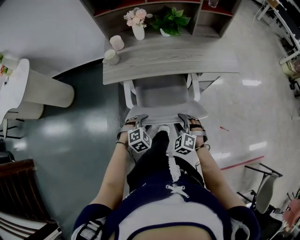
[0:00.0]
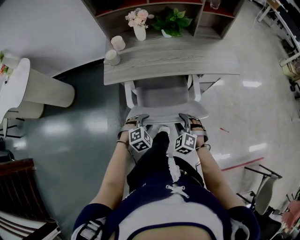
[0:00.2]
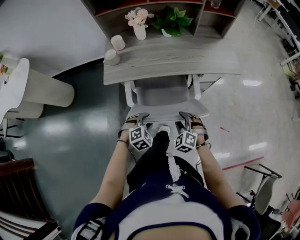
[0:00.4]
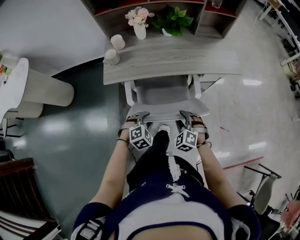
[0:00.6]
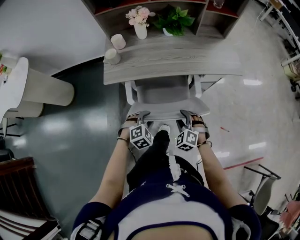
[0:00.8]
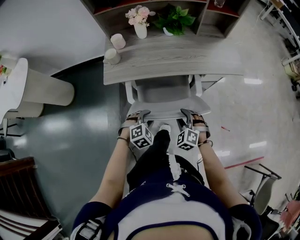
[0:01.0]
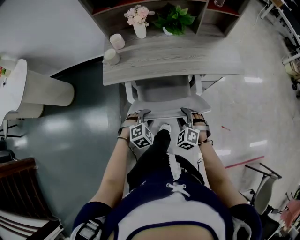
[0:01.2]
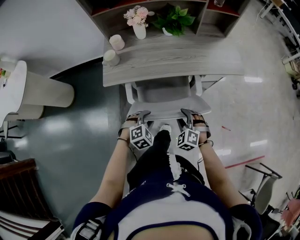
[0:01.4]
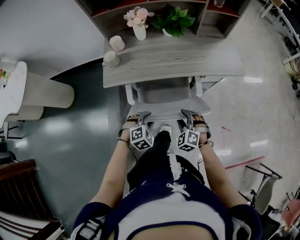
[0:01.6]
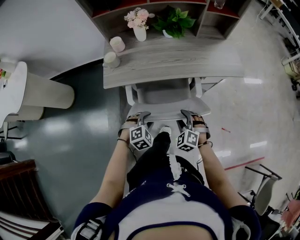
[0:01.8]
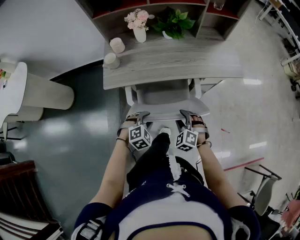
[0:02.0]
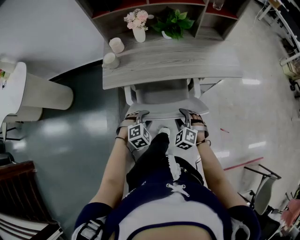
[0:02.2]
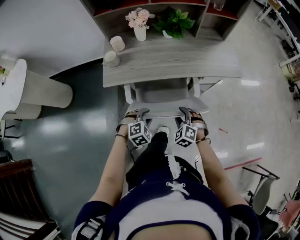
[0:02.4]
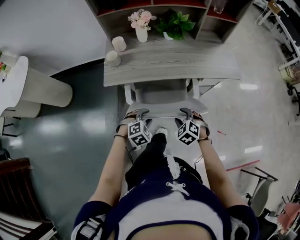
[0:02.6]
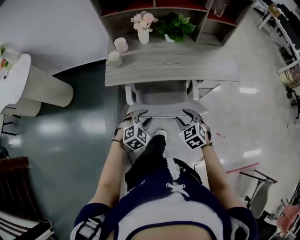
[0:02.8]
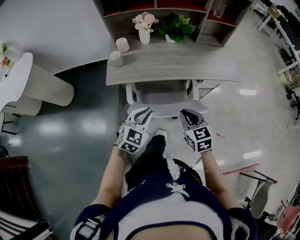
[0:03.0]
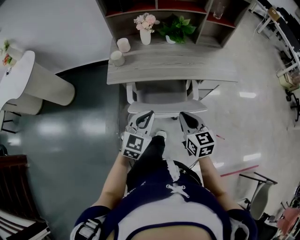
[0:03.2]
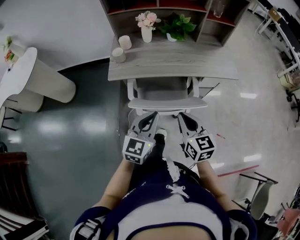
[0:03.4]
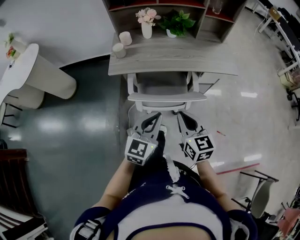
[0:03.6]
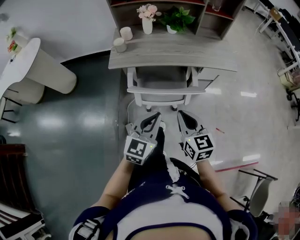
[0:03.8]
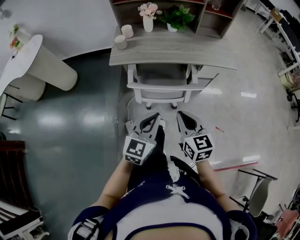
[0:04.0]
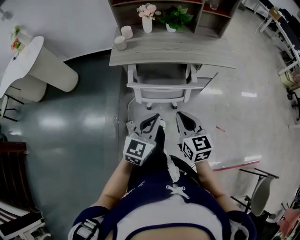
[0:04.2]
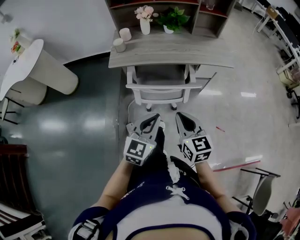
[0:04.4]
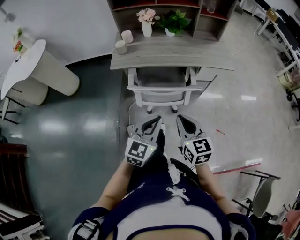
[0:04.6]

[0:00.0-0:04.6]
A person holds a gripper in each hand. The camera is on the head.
0:00.0 to 0:01.6: Both grippers move forward, roughly 5 cm.
0:01.6 to 0:03.0: Both grippers travel together upward, approximately 15 cm. The right gripper rotates around the line of its fingers by about 50 degrees, clockwise from behind, and closes, while the left gripper turns by about 40 degrees, and closes its fingers.
0:03.0 to 0:04.6: Both grippers move backward, about 20 cm.

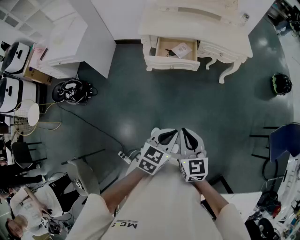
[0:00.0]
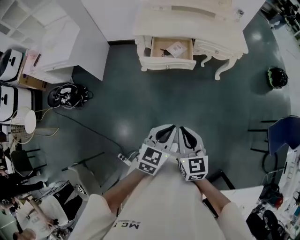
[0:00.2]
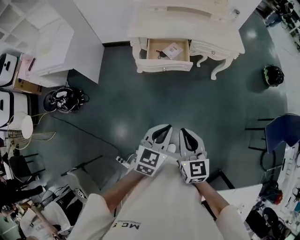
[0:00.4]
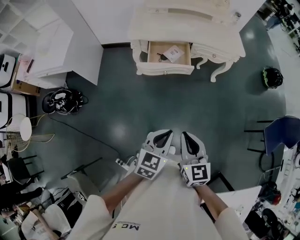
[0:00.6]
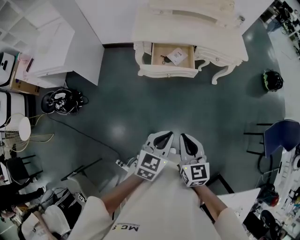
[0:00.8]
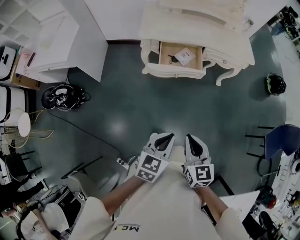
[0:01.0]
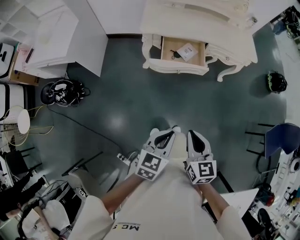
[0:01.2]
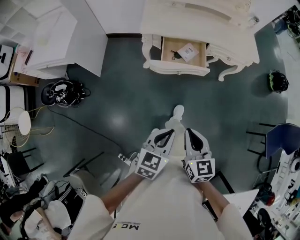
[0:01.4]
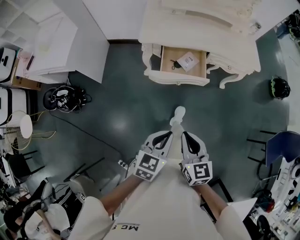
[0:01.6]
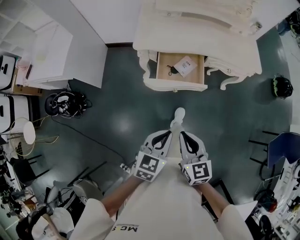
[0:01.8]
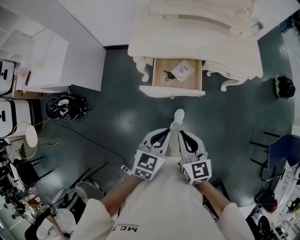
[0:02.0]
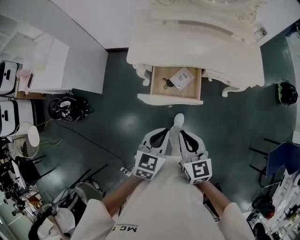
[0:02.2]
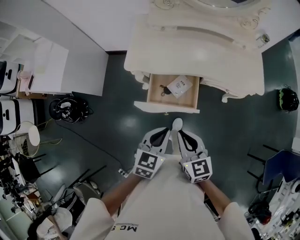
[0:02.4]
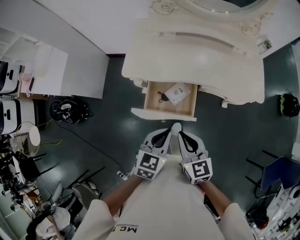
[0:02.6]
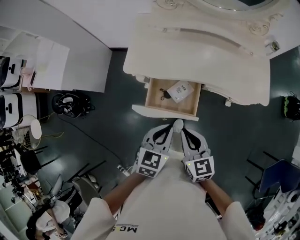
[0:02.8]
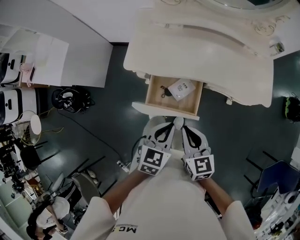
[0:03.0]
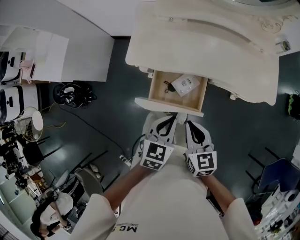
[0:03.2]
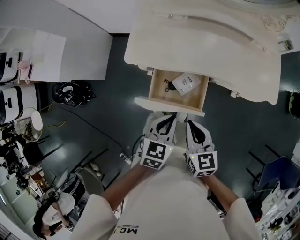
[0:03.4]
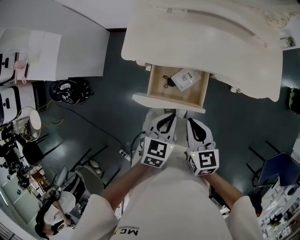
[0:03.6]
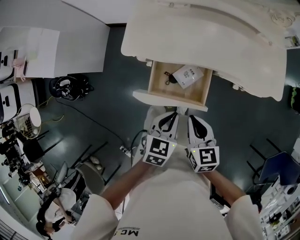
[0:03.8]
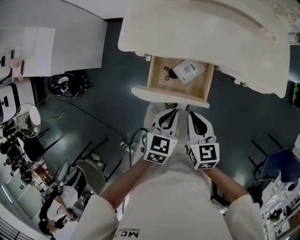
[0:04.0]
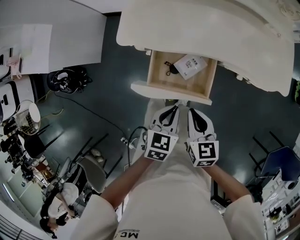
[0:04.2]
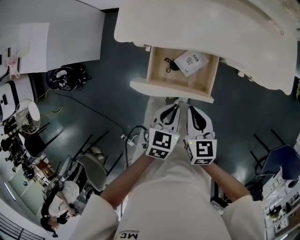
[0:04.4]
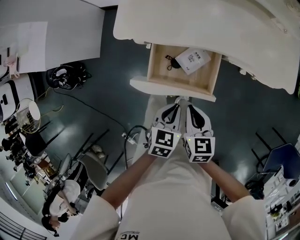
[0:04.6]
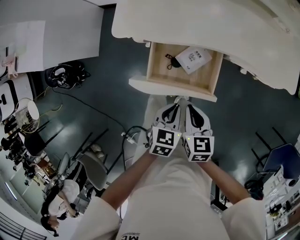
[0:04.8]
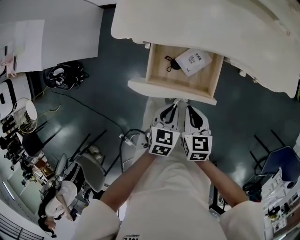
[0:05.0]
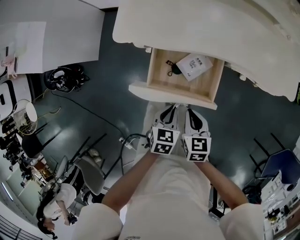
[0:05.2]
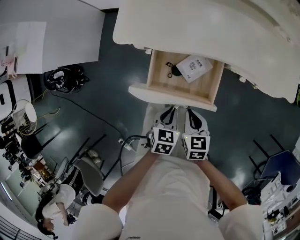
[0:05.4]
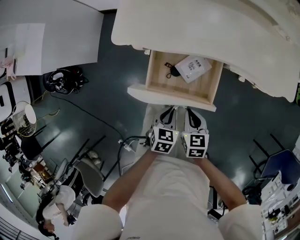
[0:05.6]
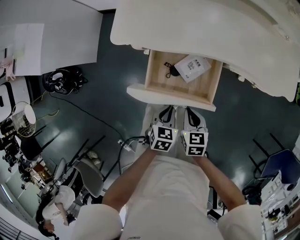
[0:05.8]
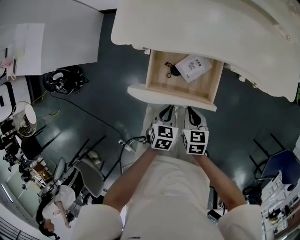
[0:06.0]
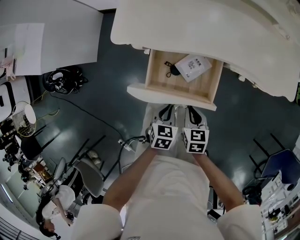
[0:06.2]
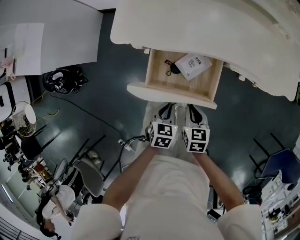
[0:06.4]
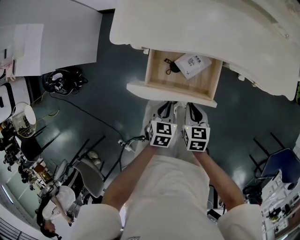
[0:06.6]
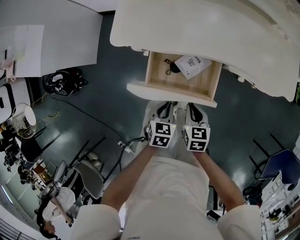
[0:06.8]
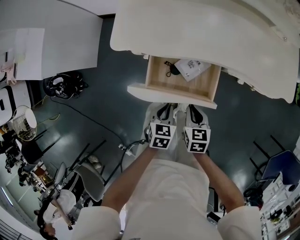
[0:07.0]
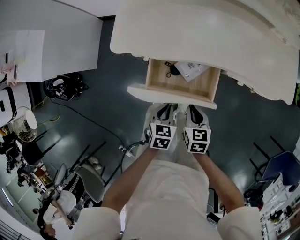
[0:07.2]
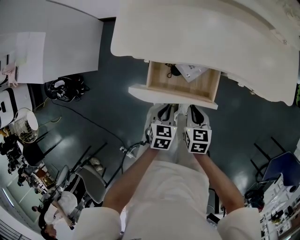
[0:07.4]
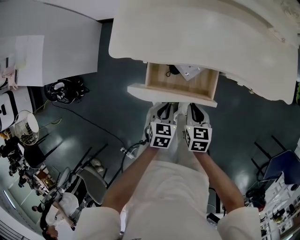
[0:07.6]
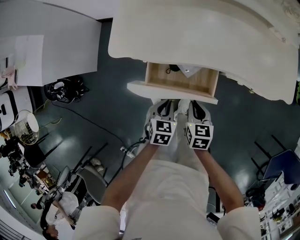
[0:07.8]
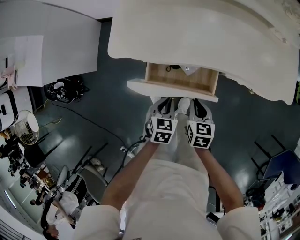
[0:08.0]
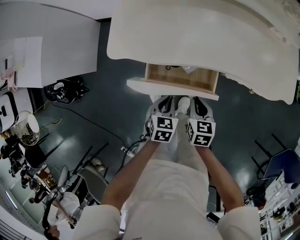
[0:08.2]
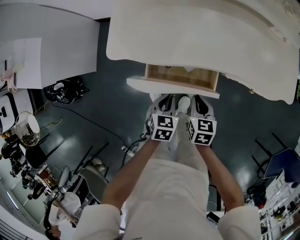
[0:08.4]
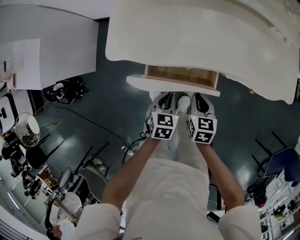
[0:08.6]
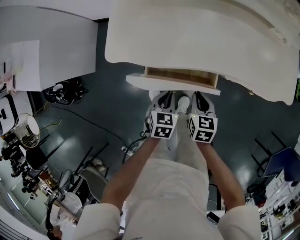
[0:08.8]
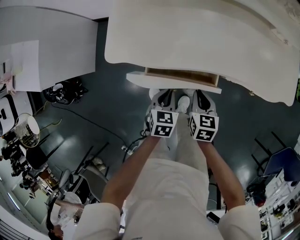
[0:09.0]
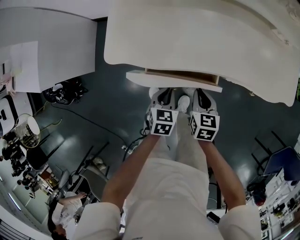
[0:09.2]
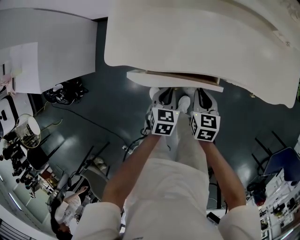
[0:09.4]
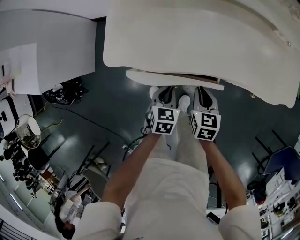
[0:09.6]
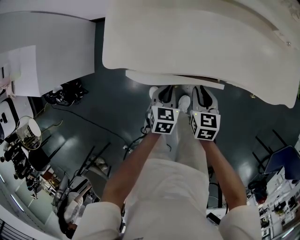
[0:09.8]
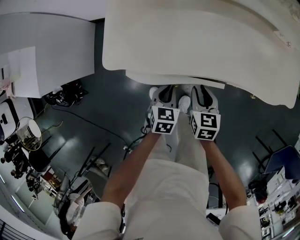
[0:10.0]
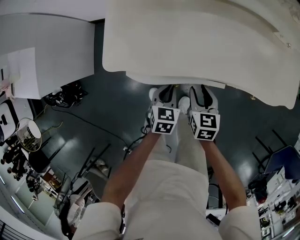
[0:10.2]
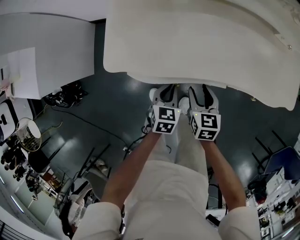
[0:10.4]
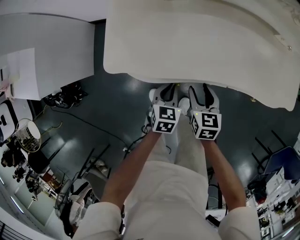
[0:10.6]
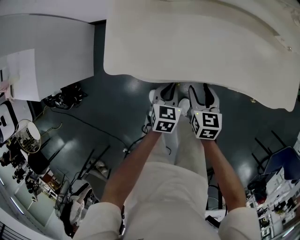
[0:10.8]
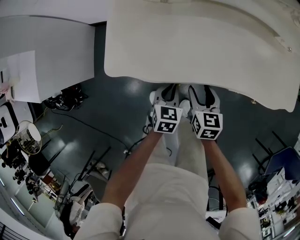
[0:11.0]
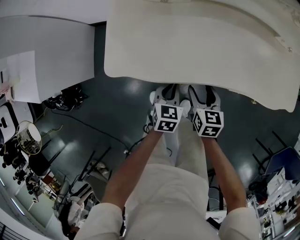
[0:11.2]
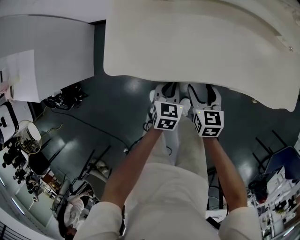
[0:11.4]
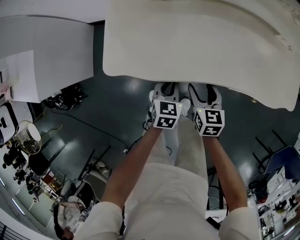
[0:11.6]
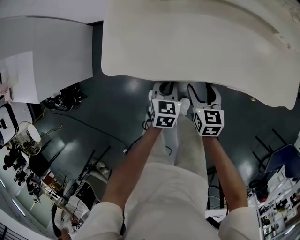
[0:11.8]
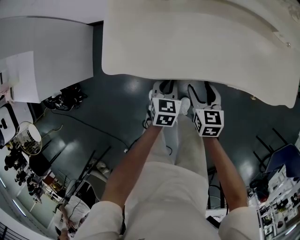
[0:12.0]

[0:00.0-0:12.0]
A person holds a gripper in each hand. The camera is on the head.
0:00.0 to 0:01.6: Both grippers move forward and to the left, roughly 20 cm.
0:01.6 to 0:03.0: The grippers both shift forward by about 30 cm.
0:03.0 to 0:04.4: The two grippers go about 10 cm downward.
0:04.4 to 0:06.0: Both grippers travel together downward, approximately 15 cm.
0:06.0 to 0:07.6: The grippers both shift forward by approximately 5 cm.
0:07.6 to 0:09.0: The two grippers go about 10 cm forward.
0:09.0 to 0:10.4: The right gripper moves about 5 cm, and opens up, while the left gripper shifts about 5 cm forward.
0:10.4 to 0:12.0: The grippers stay close to where they were, moving slightly.

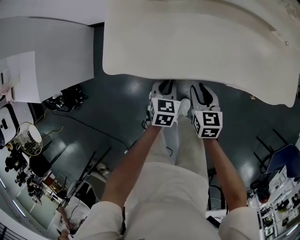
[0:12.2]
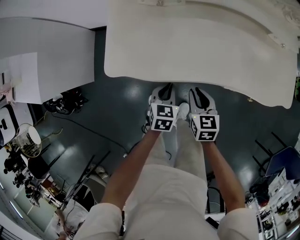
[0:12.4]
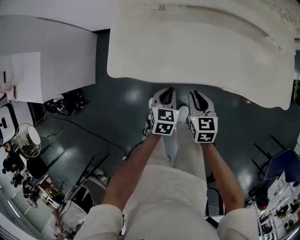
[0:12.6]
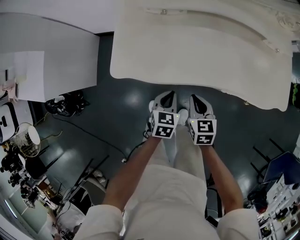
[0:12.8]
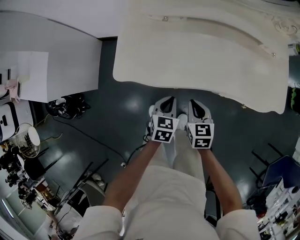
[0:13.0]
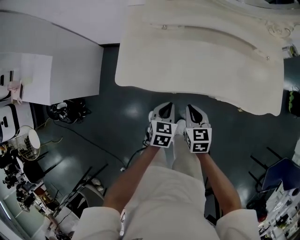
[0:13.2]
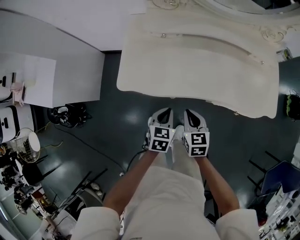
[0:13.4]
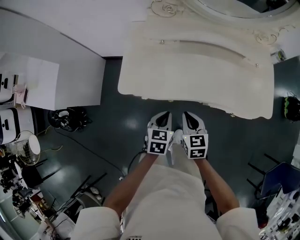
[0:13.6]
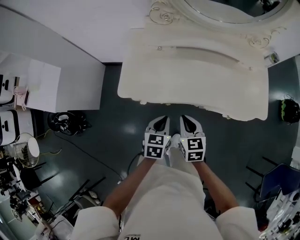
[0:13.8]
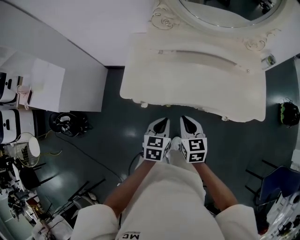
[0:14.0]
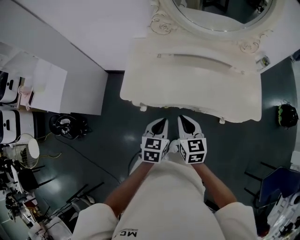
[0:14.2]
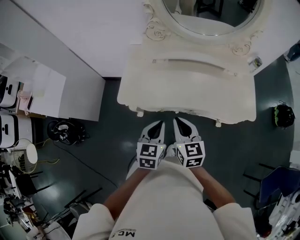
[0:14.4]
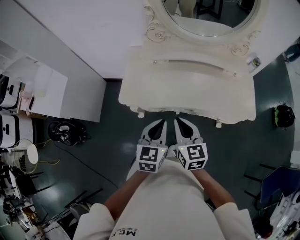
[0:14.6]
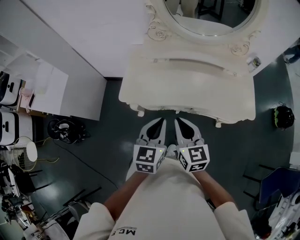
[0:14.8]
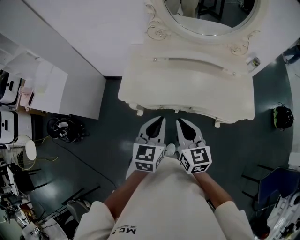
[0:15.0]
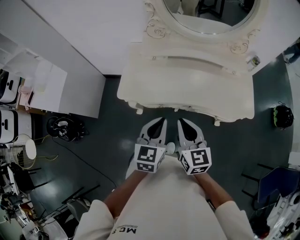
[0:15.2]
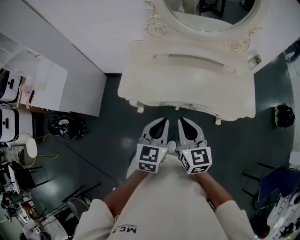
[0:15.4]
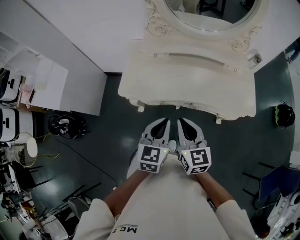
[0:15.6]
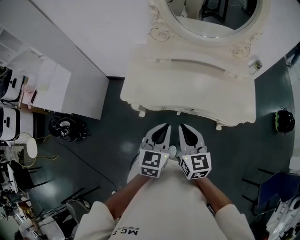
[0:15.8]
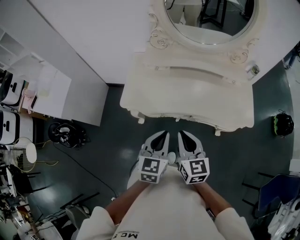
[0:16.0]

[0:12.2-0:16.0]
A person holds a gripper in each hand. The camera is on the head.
0:12.2 to 0:13.4: The grippers both shift upward by about 10 cm. The right gripper closes up.
0:13.4 to 0:14.8: Both grippers travel together upward, about 25 cm. The right gripper turns by approximately 20 degrees. The left gripper rotates roughly 20 degrees.
0:14.8 to 0:16.0: The grippers make only small movements.

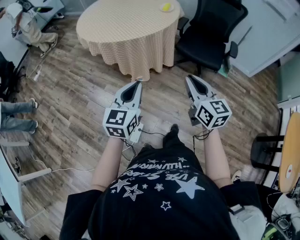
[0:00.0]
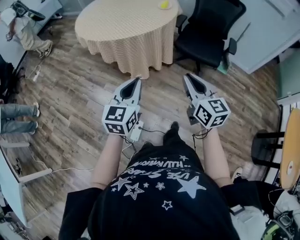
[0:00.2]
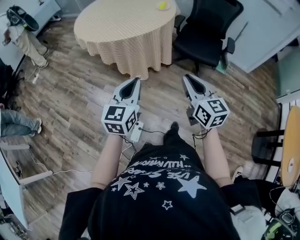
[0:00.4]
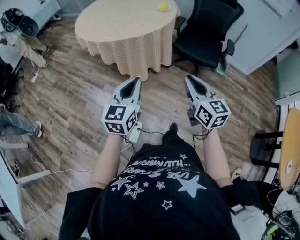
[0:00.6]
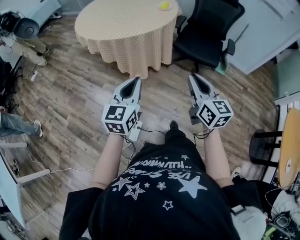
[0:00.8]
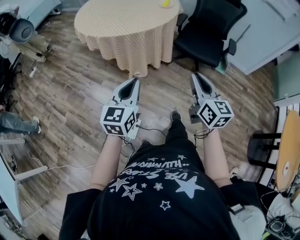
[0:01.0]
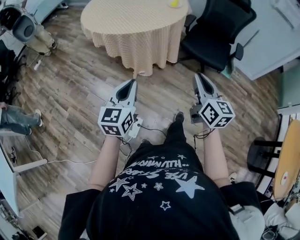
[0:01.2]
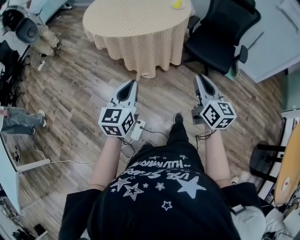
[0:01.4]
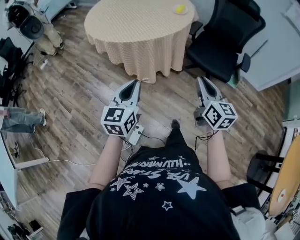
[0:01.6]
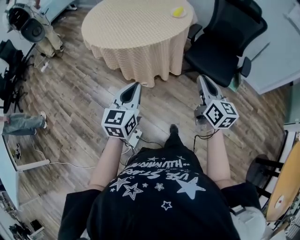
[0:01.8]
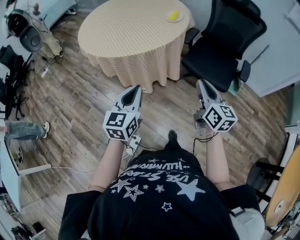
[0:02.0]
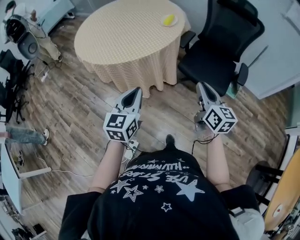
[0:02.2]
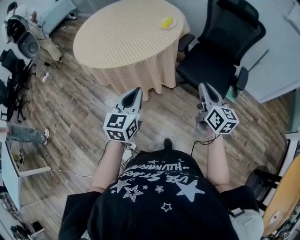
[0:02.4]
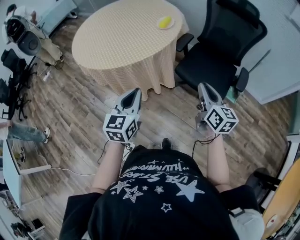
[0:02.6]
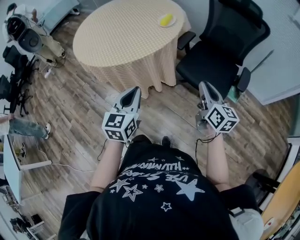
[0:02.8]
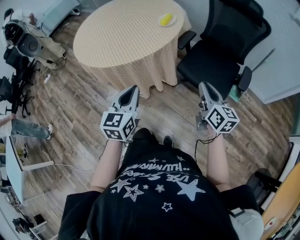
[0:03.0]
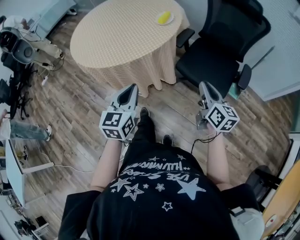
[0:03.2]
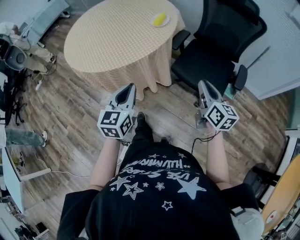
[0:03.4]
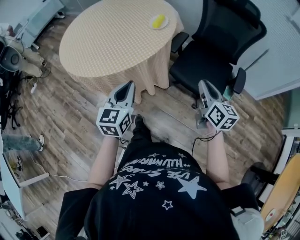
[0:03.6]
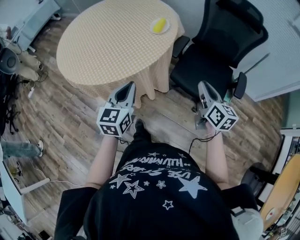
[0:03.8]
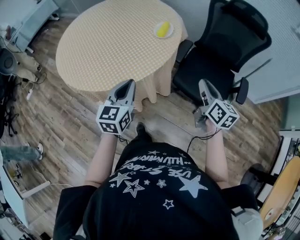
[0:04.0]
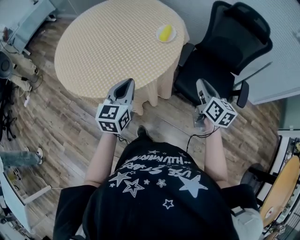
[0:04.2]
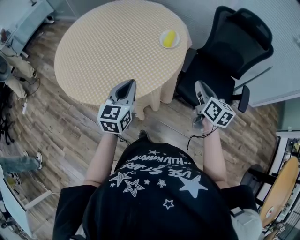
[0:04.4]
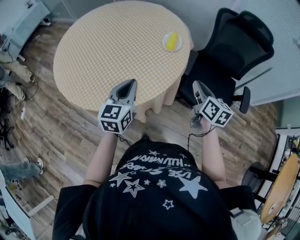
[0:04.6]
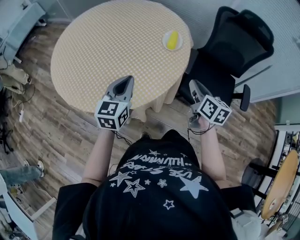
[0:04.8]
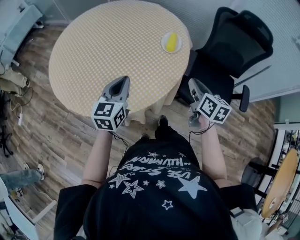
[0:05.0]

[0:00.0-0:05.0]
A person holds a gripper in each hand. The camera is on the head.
0:00.0 to 0:01.6: The right gripper shifts roughly 10 cm forward and to the right, while the left gripper goes roughly 5 cm forward.
0:01.6 to 0:03.4: Both grippers travel together forward and to the right, about 25 cm.
0:03.4 to 0:05.0: Both grippers move forward and to the left, roughly 30 cm.
